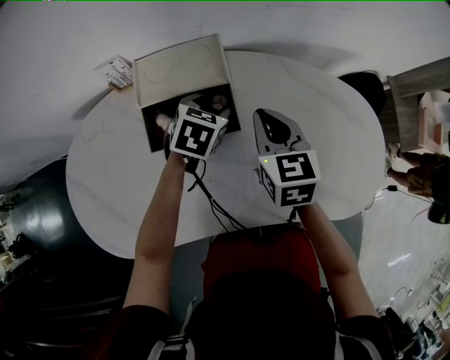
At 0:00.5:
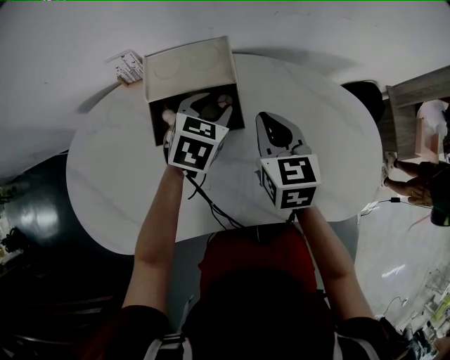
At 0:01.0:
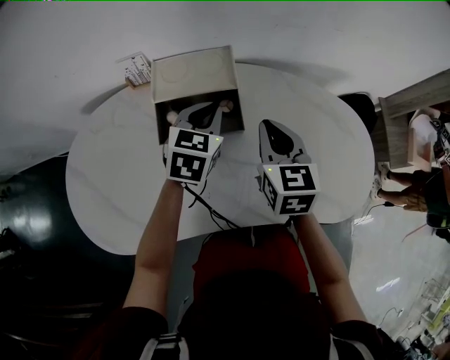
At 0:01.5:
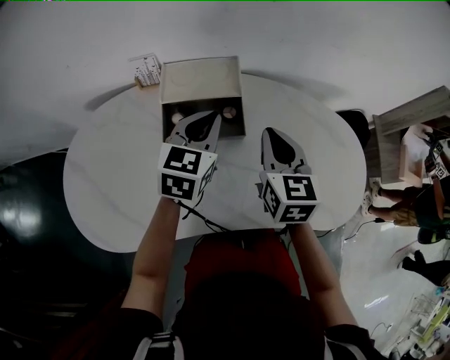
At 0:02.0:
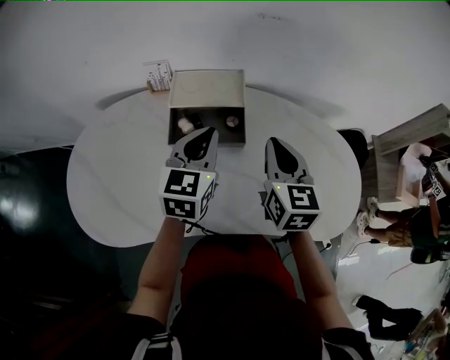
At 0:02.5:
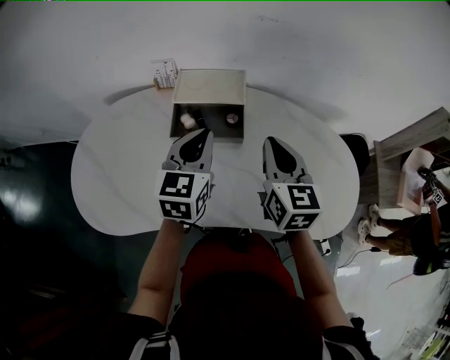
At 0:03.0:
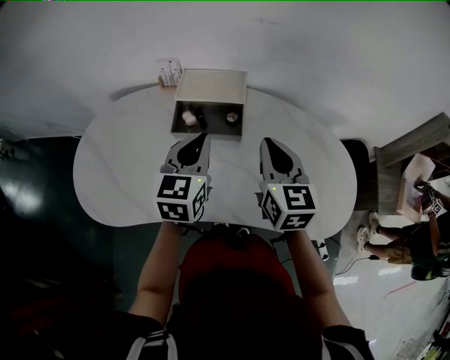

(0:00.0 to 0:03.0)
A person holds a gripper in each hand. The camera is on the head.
0:00.0 - 0:01.5: The left gripper travels upward and backward by about 15 cm, turns by about 30 degrees, and closes. Meanwhile the right gripper travels upward by some 5 cm.
0:01.5 - 0:03.0: The right gripper goes some 5 cm backward, while the left gripper moves backward, roughly 10 cm.

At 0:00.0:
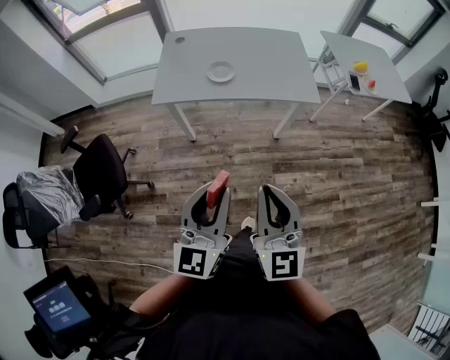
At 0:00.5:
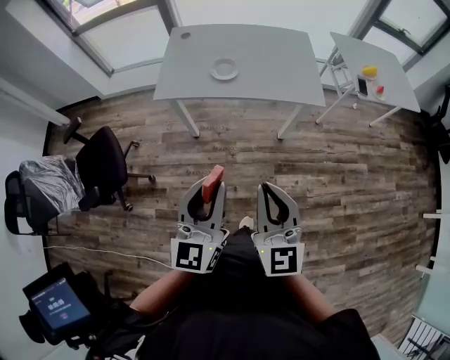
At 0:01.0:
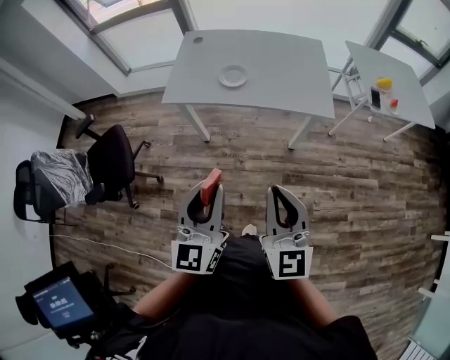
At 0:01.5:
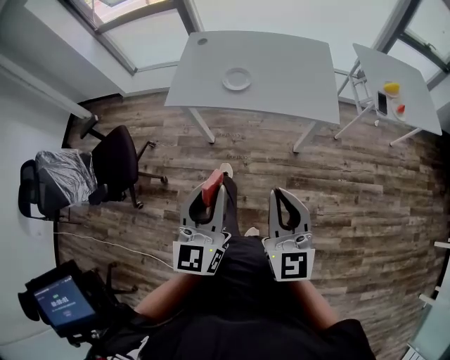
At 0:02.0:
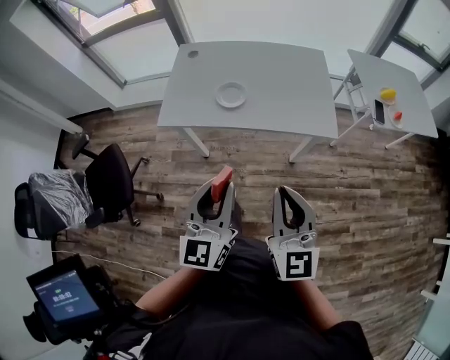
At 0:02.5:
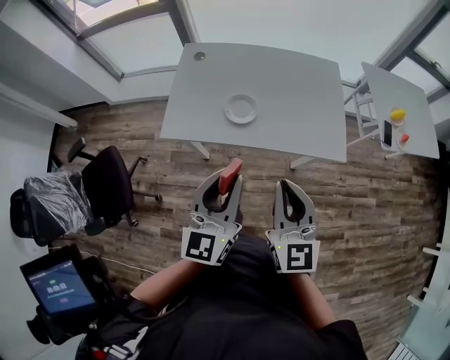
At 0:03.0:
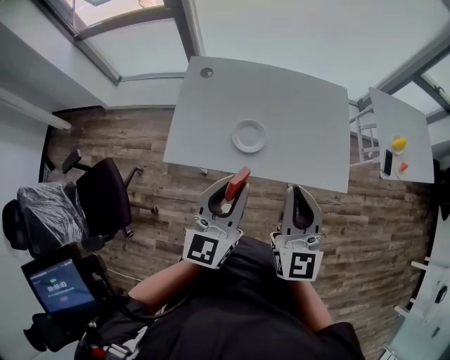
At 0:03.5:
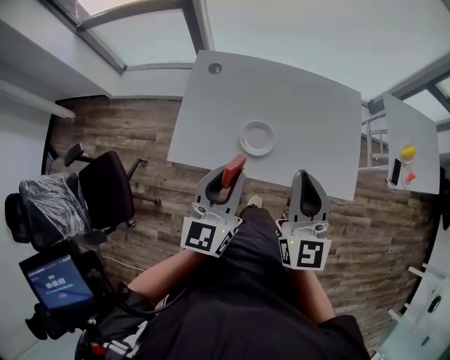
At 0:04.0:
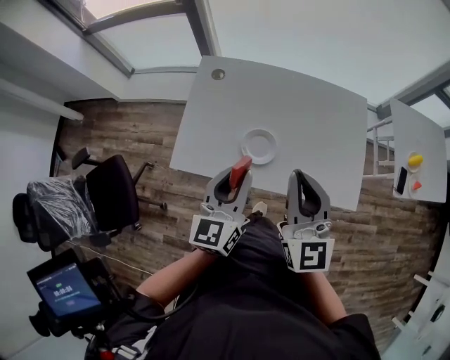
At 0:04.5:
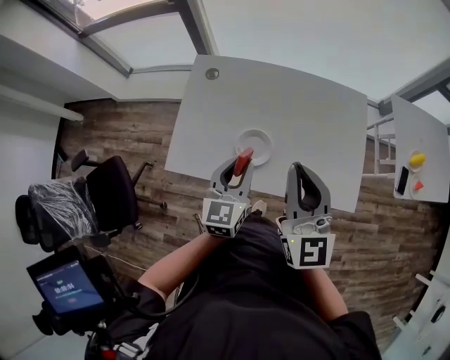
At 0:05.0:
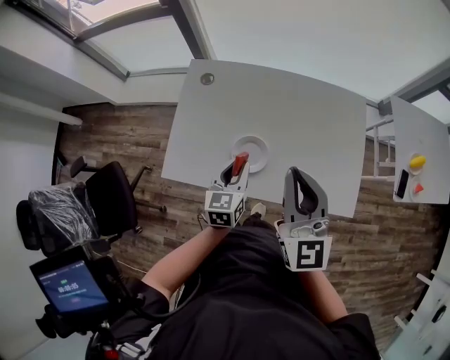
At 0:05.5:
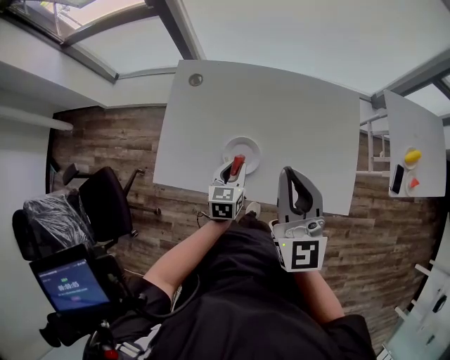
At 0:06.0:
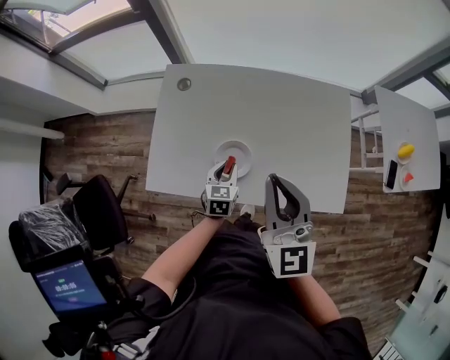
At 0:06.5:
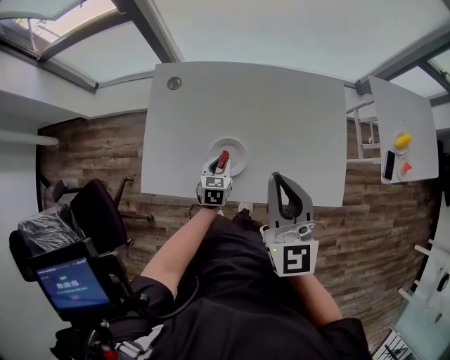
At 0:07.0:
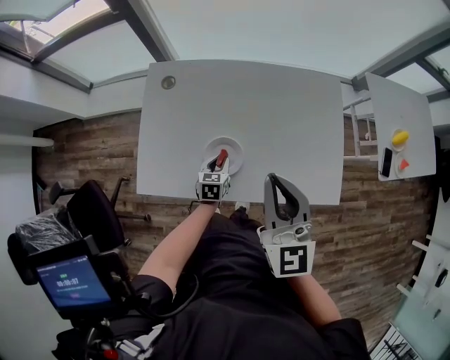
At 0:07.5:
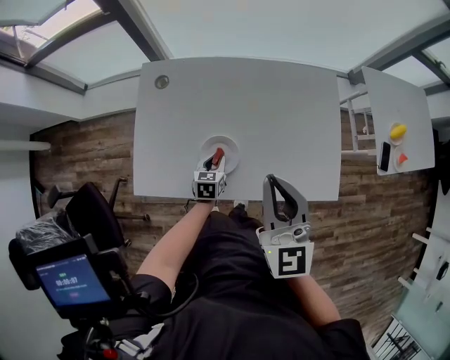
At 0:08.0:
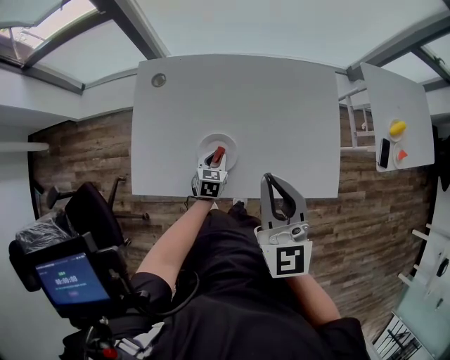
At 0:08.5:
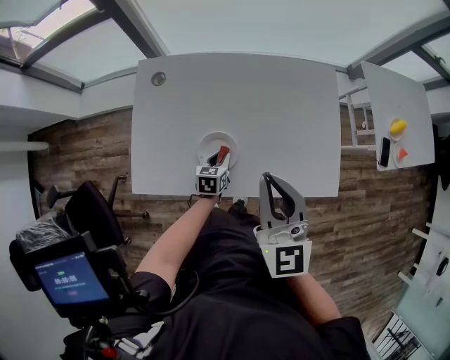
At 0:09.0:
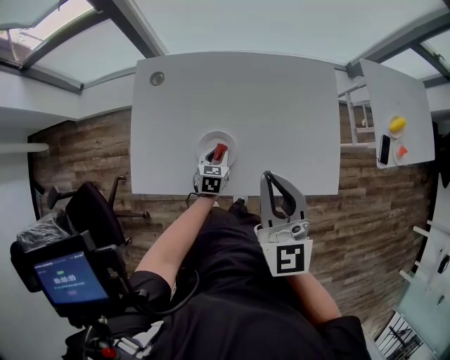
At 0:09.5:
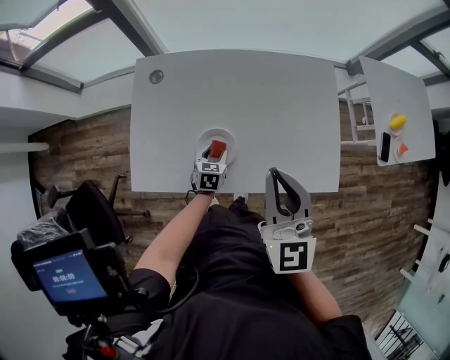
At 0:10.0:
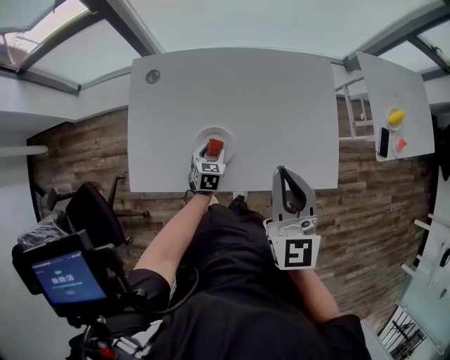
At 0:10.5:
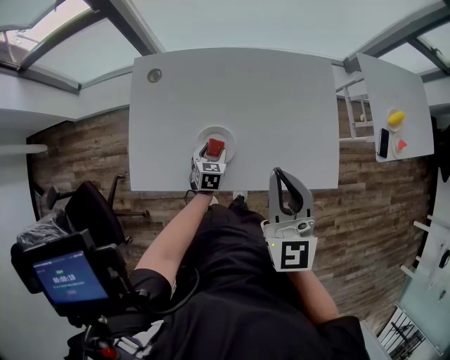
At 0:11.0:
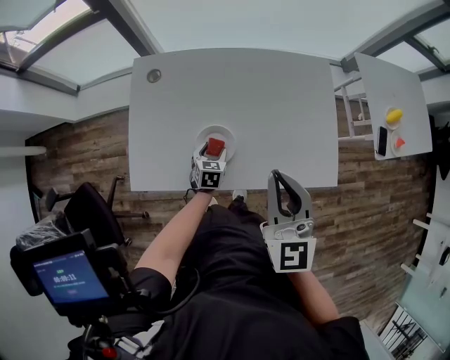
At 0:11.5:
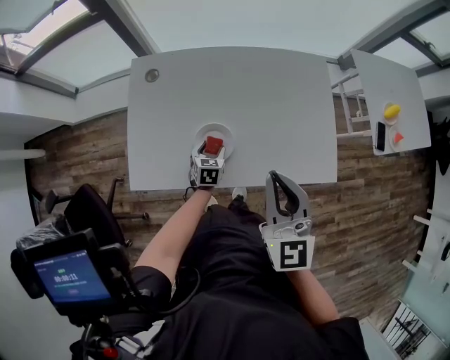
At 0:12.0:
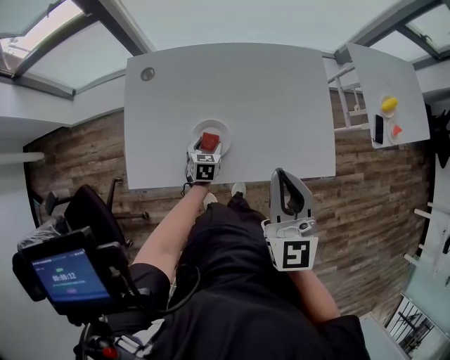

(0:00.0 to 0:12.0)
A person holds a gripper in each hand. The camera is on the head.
0:00.0 - 0:02.0: The right gripper travels forward and to the right by about 20 cm. Meanwhile the left gripper moves forward, some 20 cm.
0:02.0 - 0:04.0: The grippers both shift forward by about 30 cm.
0:04.0 - 0:06.0: The left gripper heads downward and forward, covering about 30 cm, and tips its fingers downward by about 30 degrees, while the right gripper is displaced forward by approximately 5 cm.
0:06.0 - 0:08.0: The left gripper moves downward, some 10 cm.
0:08.0 - 0:10.0: The left gripper opens.
0:10.0 - 0:12.0: The grippers stay close to where they were, moving slightly.

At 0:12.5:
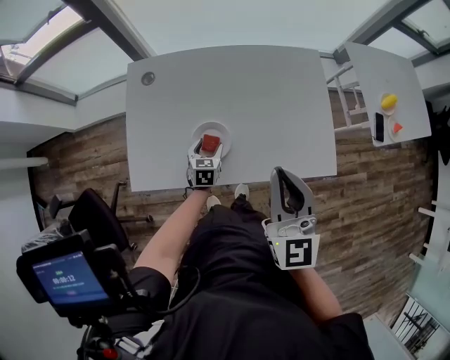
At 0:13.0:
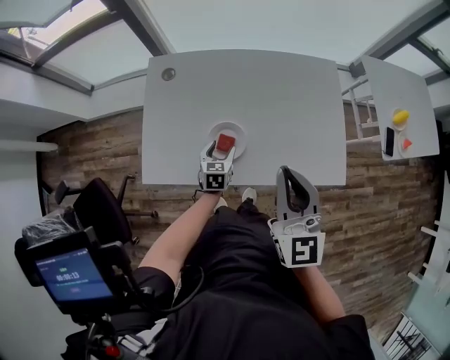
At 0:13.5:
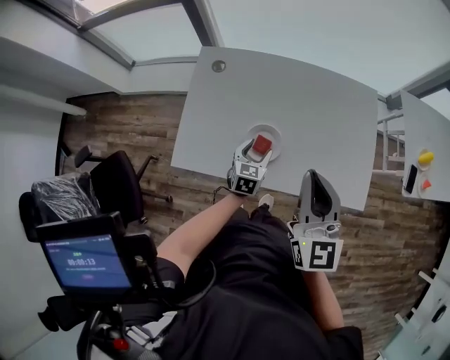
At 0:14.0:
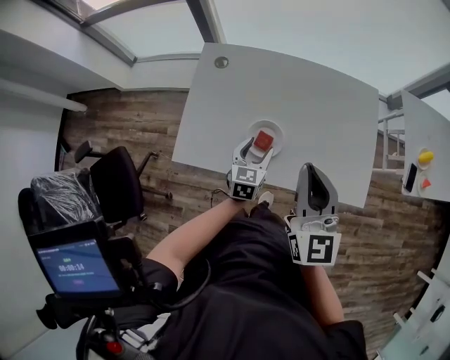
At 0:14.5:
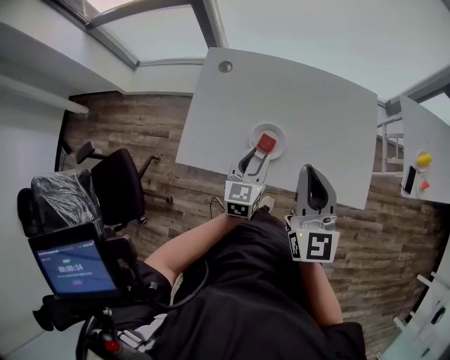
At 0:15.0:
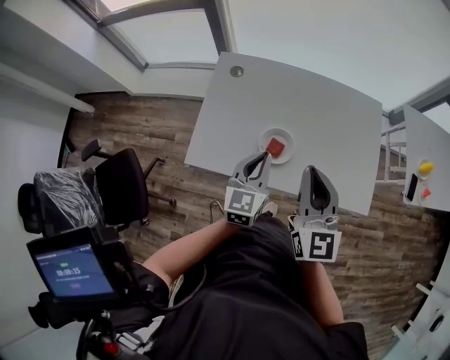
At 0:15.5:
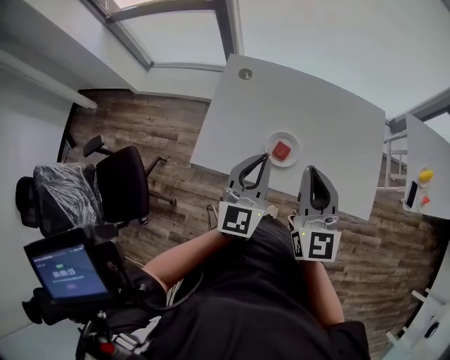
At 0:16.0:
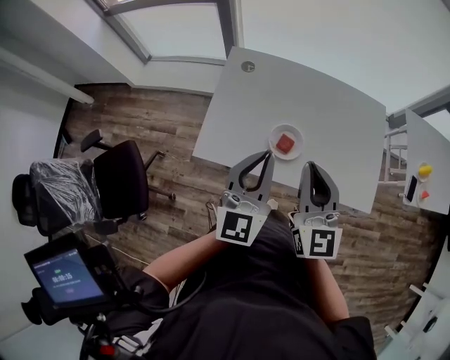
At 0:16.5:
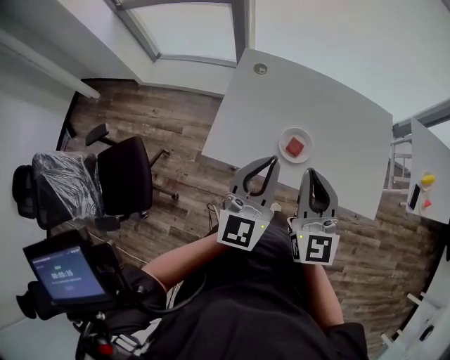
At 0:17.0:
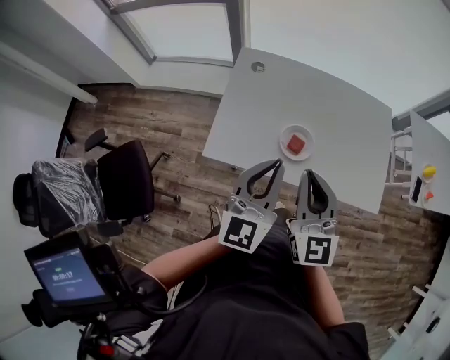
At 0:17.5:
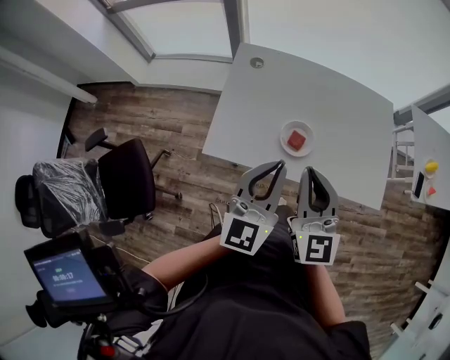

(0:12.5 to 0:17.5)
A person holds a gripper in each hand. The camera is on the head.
0:12.5 - 0:15.0: The left gripper moves upward, roughly 25 cm, rotates roughly 30 degrees, and closes up. Meanwhile the right gripper shifts about 10 cm to the left.
0:15.0 - 0:17.5: The left gripper shifts about 15 cm upward, backward and to the left; the right gripper heads to the left and backward, covering roughly 10 cm.

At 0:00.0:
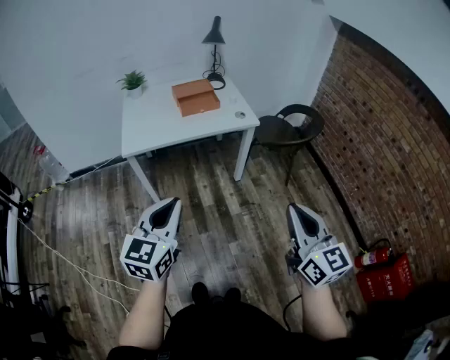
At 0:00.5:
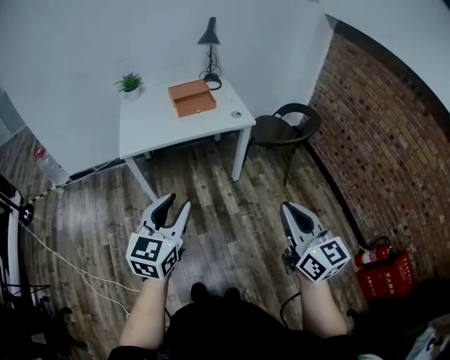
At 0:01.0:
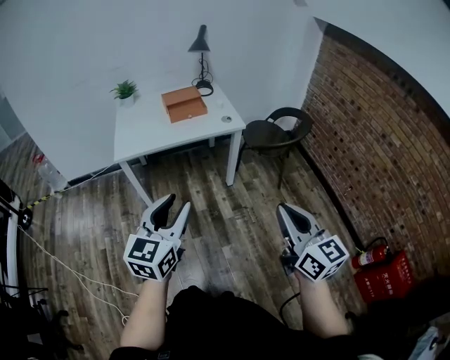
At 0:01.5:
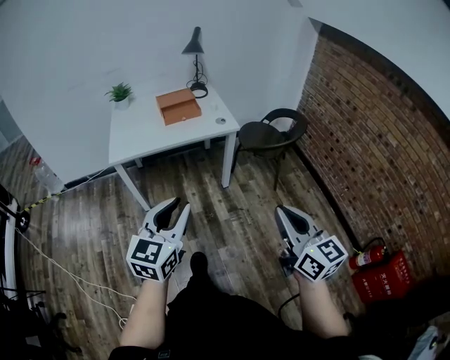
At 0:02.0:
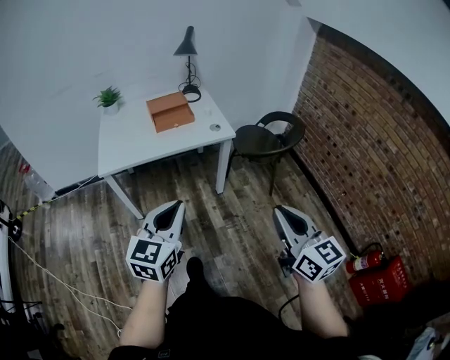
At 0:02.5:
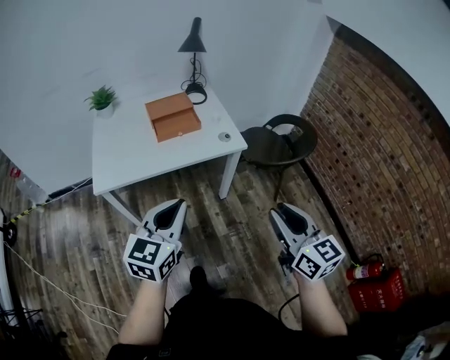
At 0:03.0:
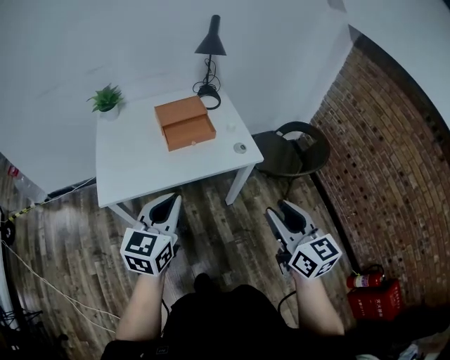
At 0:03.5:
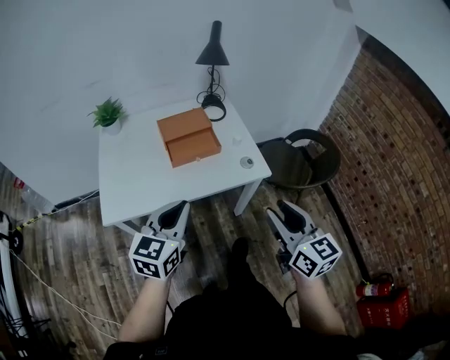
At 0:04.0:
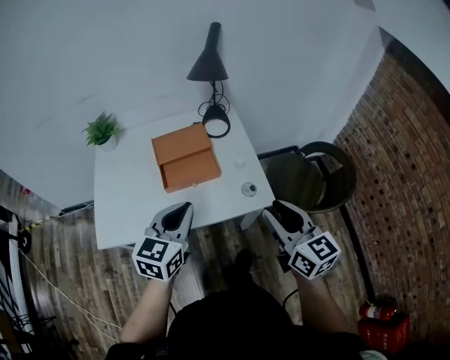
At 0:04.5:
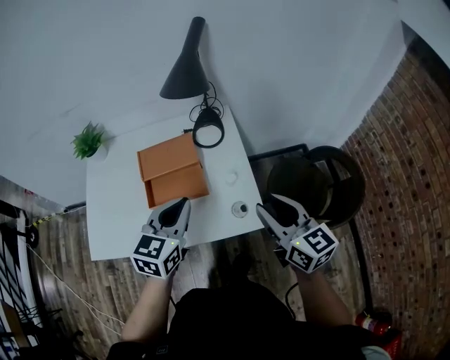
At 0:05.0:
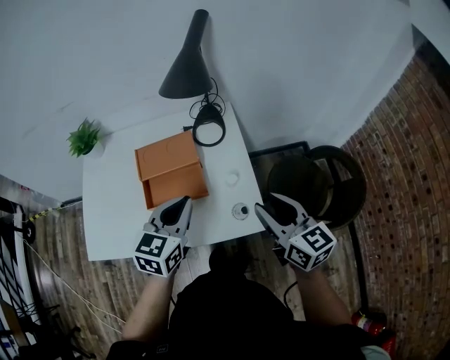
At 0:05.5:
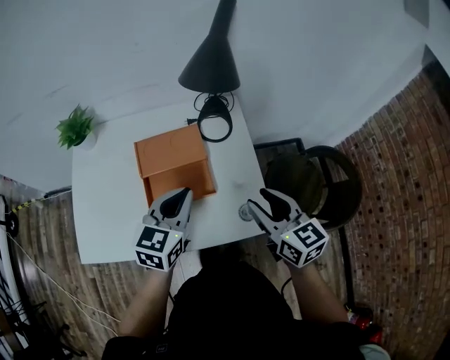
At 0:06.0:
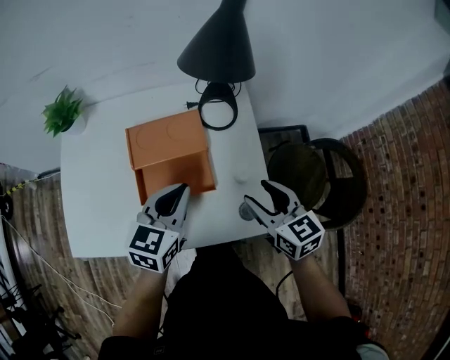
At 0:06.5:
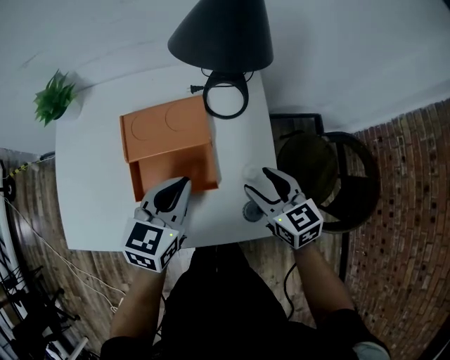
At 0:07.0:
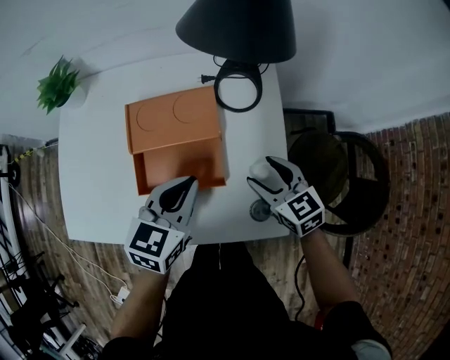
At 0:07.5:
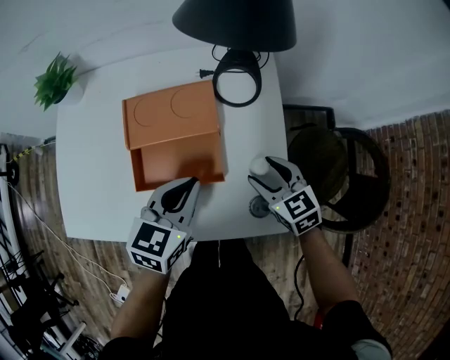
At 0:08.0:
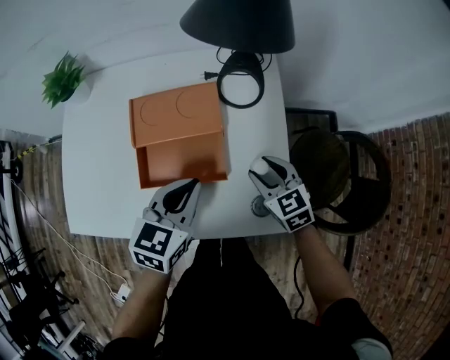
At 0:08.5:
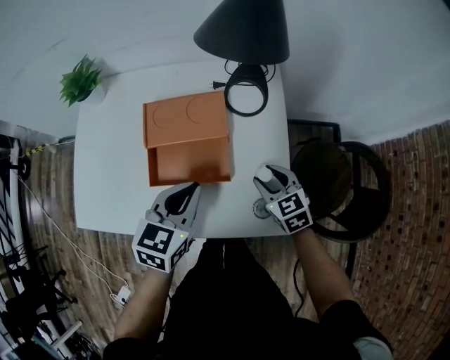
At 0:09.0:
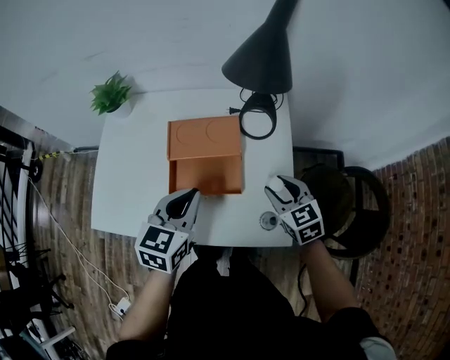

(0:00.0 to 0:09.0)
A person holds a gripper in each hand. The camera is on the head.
0:00.0 - 0:02.0: The two grippers go some 10 cm to the right and forward. The left gripper opens, then closes once more.
0:02.0 - 0:04.5: The two grippers travel together, forward, about 60 cm. The right gripper opens its fingers.
0:04.5 - 0:07.0: The left gripper shifts approximately 20 cm downward and forward; the right gripper is displaced downward and forward by roughly 30 cm, changes its angle by about 30 degrees, and opens.
0:07.0 - 0:09.0: Both grippers move upward, some 5 cm.
